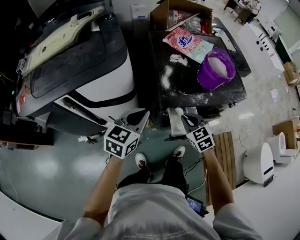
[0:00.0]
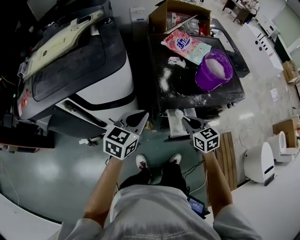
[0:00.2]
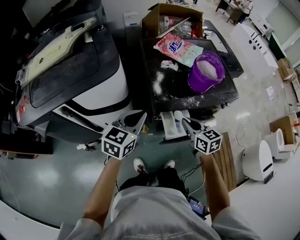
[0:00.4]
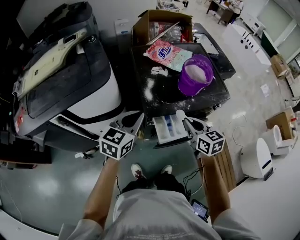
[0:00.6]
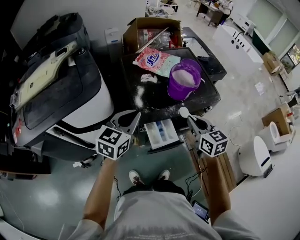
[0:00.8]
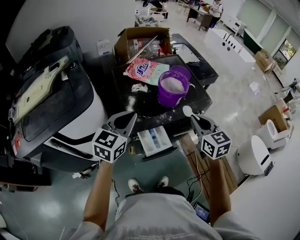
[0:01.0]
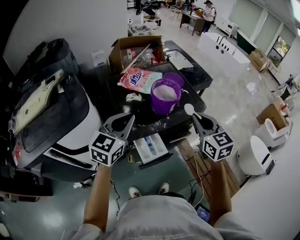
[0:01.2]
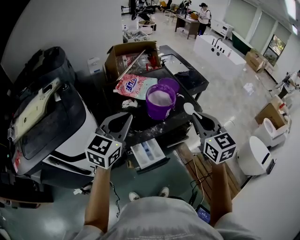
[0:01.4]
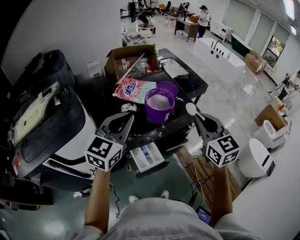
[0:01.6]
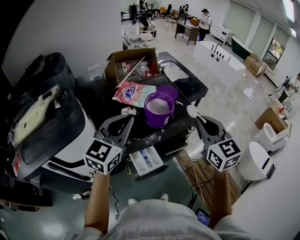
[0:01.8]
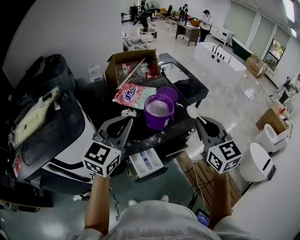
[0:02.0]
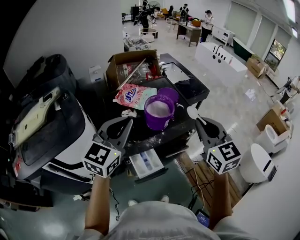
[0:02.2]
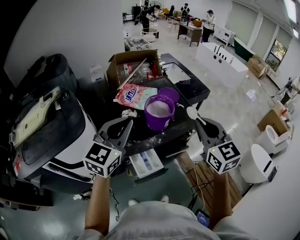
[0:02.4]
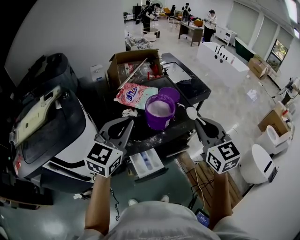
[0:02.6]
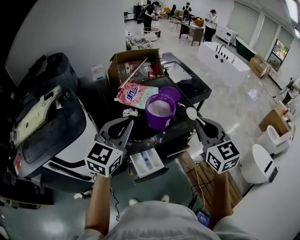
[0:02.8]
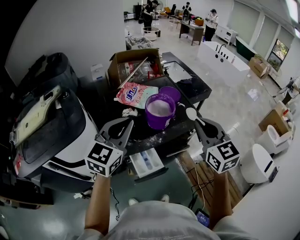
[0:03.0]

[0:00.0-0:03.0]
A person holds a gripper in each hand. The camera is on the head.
0.0 to 1.6 s: Both grippers travel together upward and to the right, approximately 35 cm. The left gripper swivels roughly 30 degrees, while the right gripper changes its angle by roughly 40 degrees.
1.6 to 3.0 s: The grippers stay close to where they were, moving slightly.

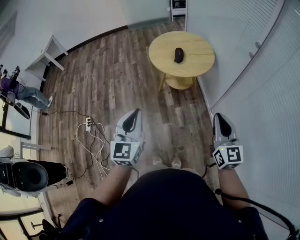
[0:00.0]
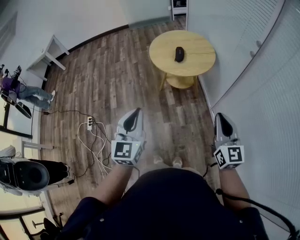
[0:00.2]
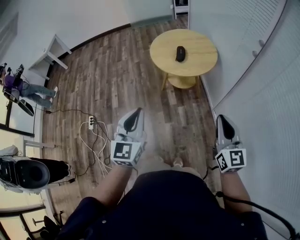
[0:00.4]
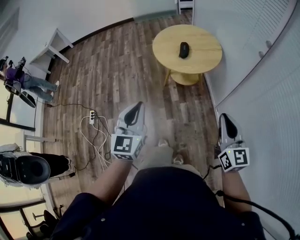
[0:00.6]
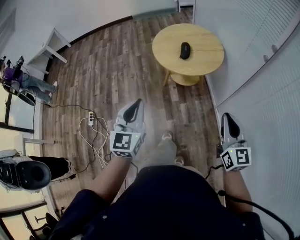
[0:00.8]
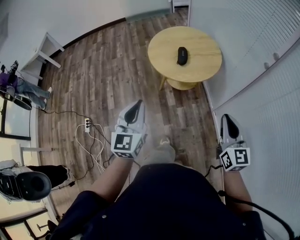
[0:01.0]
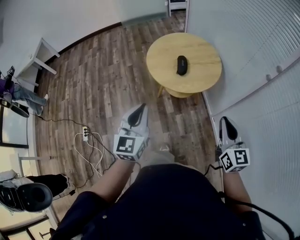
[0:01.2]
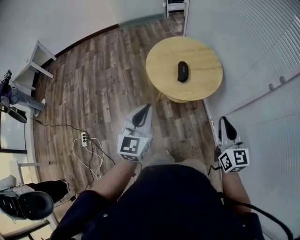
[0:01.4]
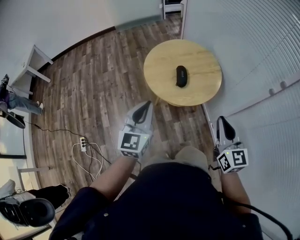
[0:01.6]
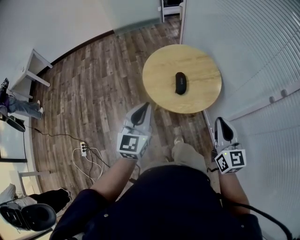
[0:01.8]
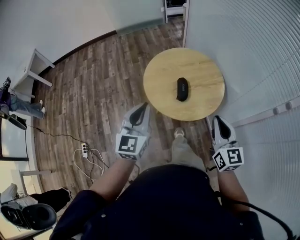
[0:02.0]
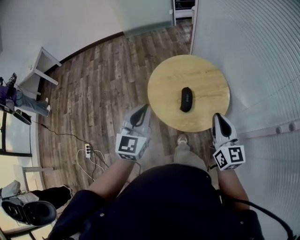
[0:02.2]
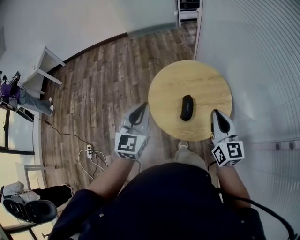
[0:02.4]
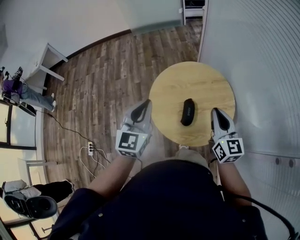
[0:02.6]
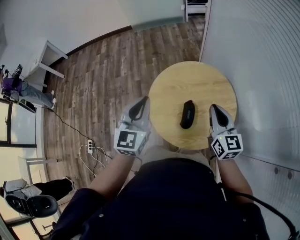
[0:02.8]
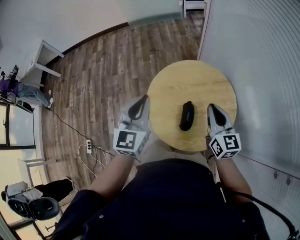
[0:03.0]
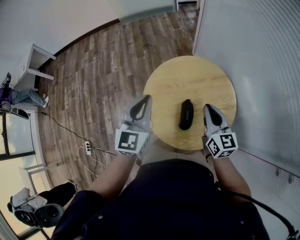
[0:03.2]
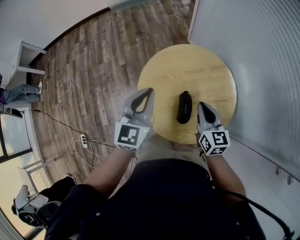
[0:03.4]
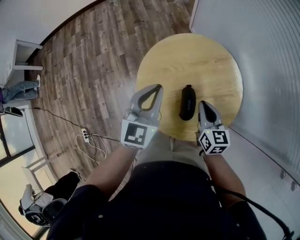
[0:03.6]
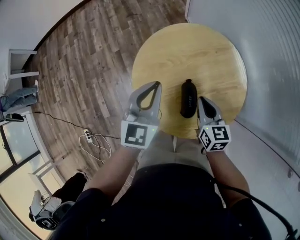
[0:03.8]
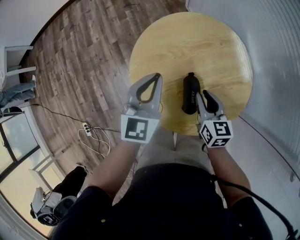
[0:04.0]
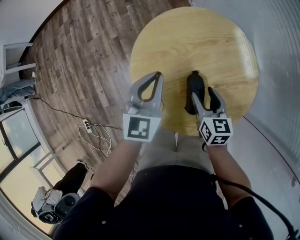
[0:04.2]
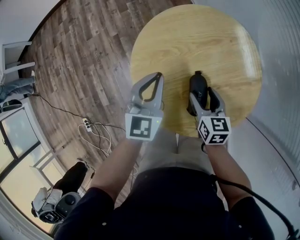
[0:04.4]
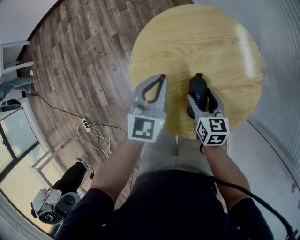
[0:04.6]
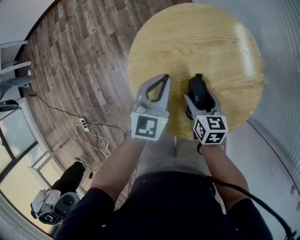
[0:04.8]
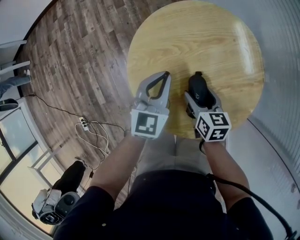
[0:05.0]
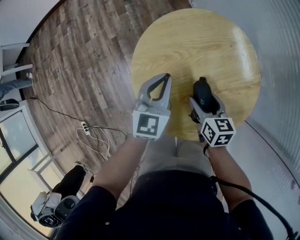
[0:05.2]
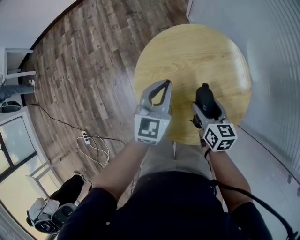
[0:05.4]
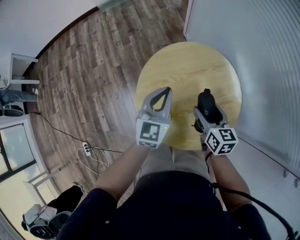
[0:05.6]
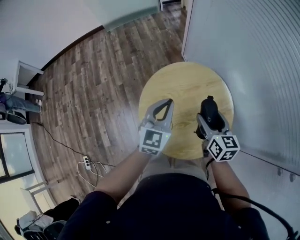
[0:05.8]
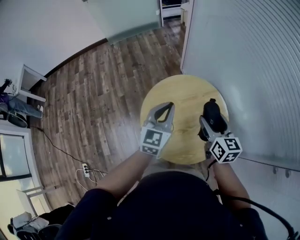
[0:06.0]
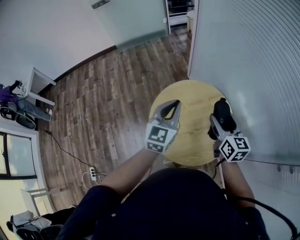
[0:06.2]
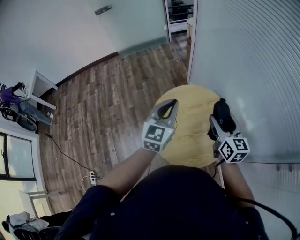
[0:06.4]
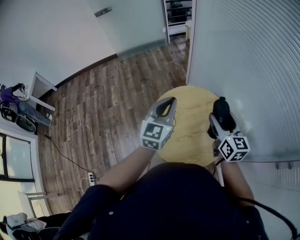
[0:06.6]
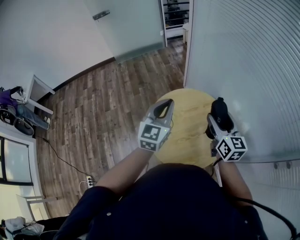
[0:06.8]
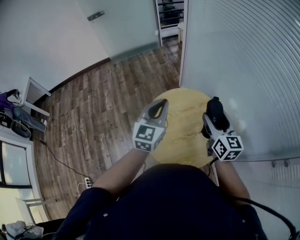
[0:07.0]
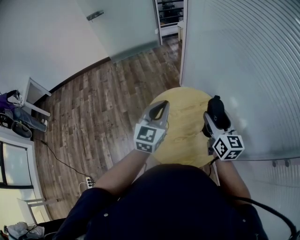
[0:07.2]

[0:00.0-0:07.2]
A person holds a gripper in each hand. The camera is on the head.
0.0 to 1.4 s: The grippers both shift forward by approximately 25 cm.
1.4 to 2.8 s: Both grippers move forward, roughly 35 cm.
2.8 to 4.4 s: The left gripper travels downward and forward by approximately 30 cm, while the right gripper is displaced downward by approximately 30 cm, tilts its fingers some 30 degrees downward, and opens.
4.4 to 5.8 s: The left gripper moves upward, about 15 cm, while the right gripper heads upward, covering approximately 20 cm.
5.8 to 7.2 s: Both grippers move upward, roughly 15 cm.

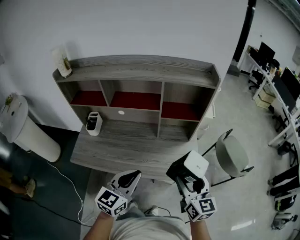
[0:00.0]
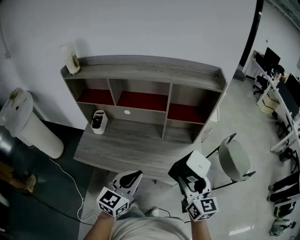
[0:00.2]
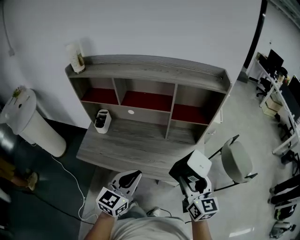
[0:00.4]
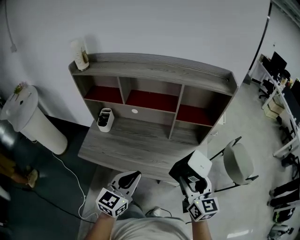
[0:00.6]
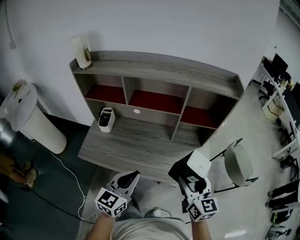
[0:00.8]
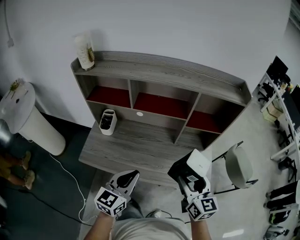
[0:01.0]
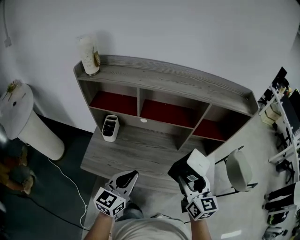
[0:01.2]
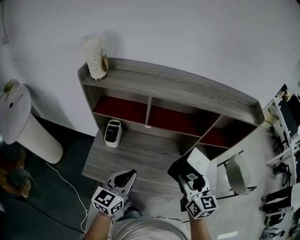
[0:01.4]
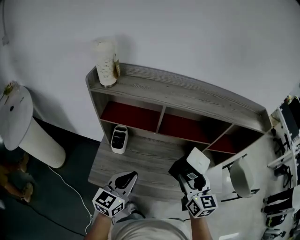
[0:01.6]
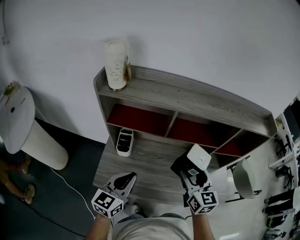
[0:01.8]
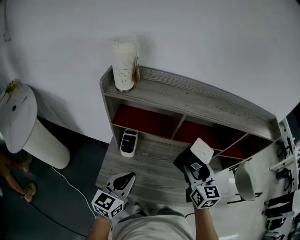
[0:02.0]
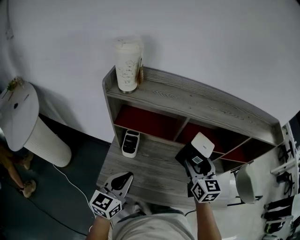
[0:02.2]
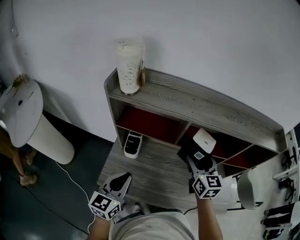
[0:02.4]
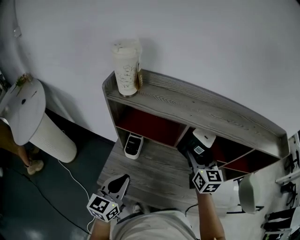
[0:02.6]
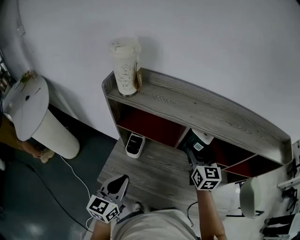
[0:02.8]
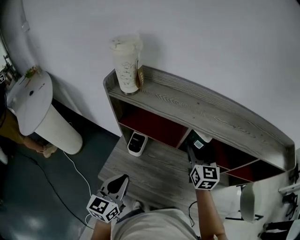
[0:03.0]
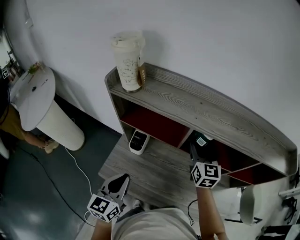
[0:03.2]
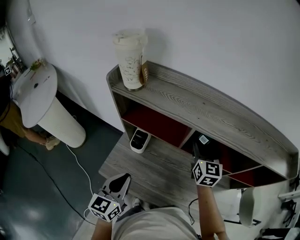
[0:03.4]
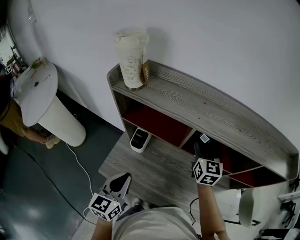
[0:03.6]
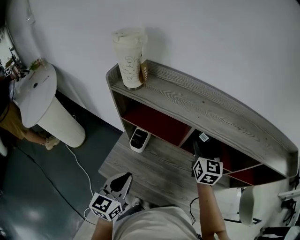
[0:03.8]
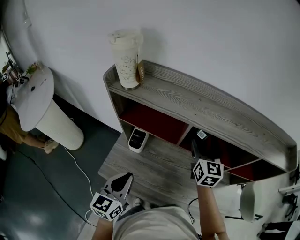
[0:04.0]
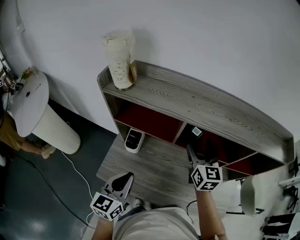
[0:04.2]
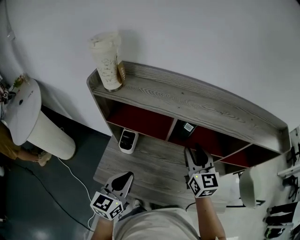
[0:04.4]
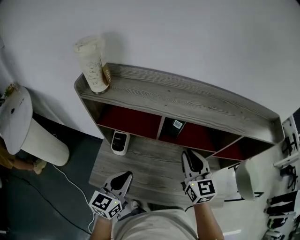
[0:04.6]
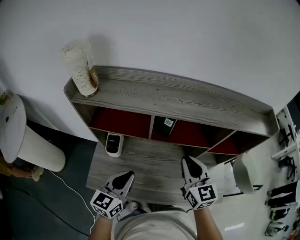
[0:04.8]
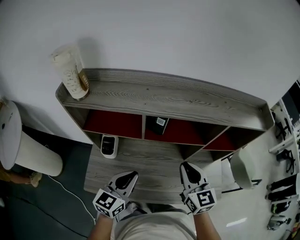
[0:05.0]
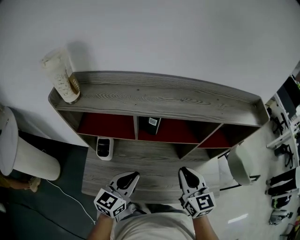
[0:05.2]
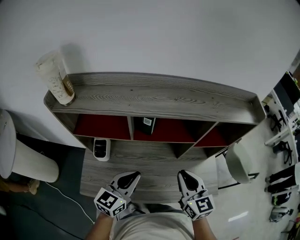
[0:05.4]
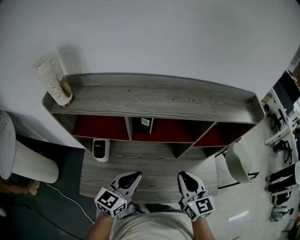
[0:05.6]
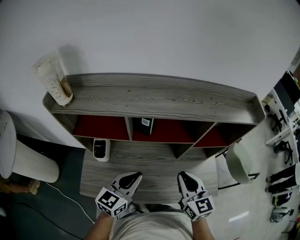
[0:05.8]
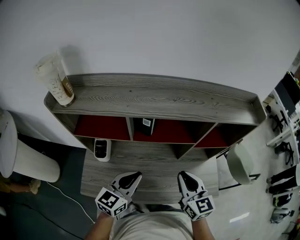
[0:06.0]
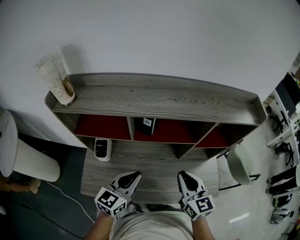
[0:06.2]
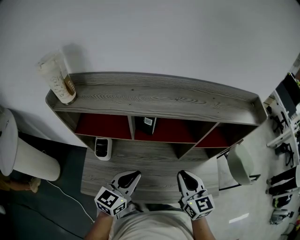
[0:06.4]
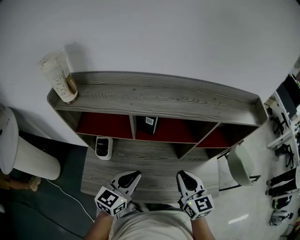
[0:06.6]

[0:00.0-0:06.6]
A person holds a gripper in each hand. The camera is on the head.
0.0 to 1.6 s: The left gripper goes roughly 30 cm to the left; the right gripper moves to the left and forward, roughly 30 cm.
1.6 to 3.2 s: The left gripper goes some 10 cm to the left, and swivels roughly 20 degrees. The right gripper moves forward, roughly 25 cm.
3.2 to 5.0 s: The left gripper travels to the right by about 15 cm, and turns by approximately 30 degrees, while the right gripper heads backward and to the right, covering about 20 cm, and closes up.
5.0 to 6.6 s: The right gripper shifts by roughly 5 cm.

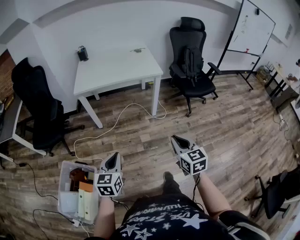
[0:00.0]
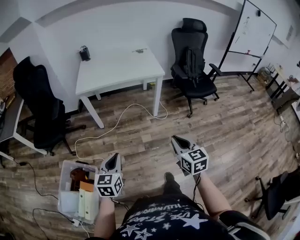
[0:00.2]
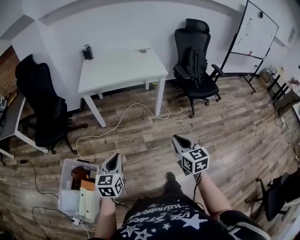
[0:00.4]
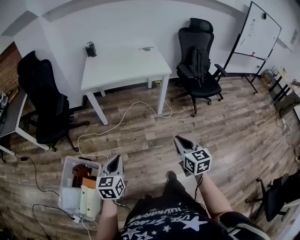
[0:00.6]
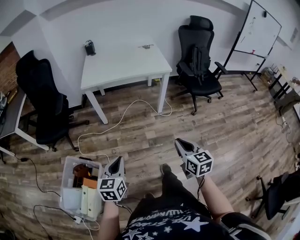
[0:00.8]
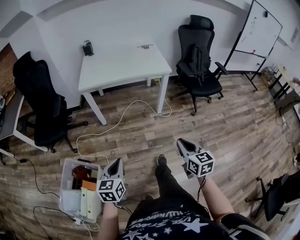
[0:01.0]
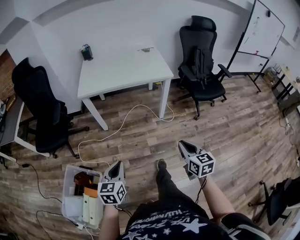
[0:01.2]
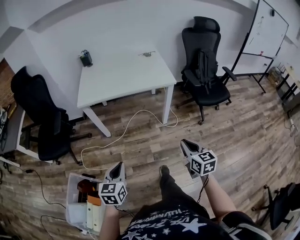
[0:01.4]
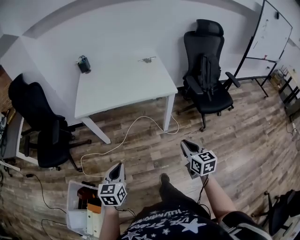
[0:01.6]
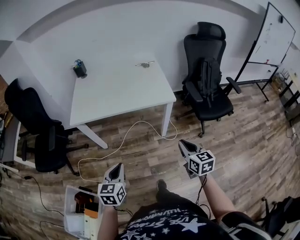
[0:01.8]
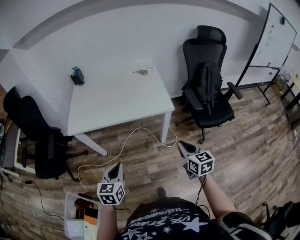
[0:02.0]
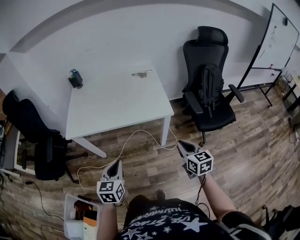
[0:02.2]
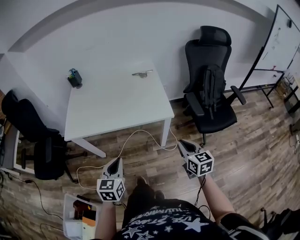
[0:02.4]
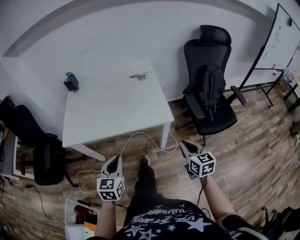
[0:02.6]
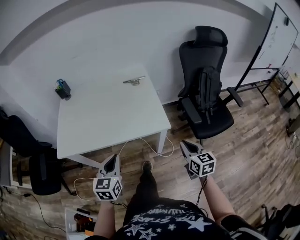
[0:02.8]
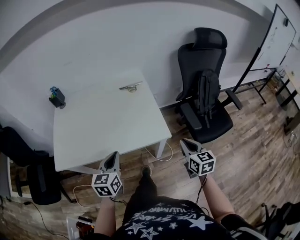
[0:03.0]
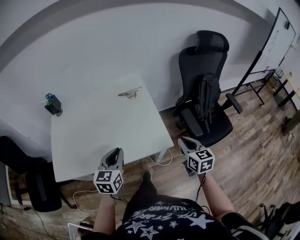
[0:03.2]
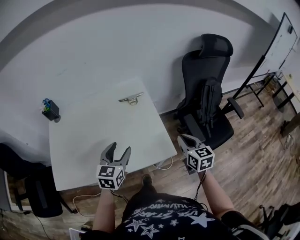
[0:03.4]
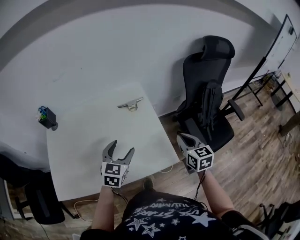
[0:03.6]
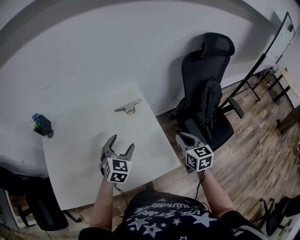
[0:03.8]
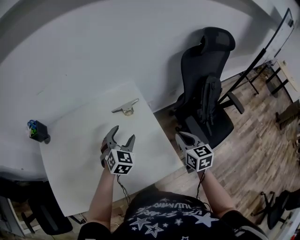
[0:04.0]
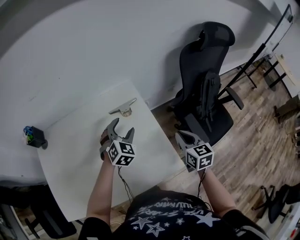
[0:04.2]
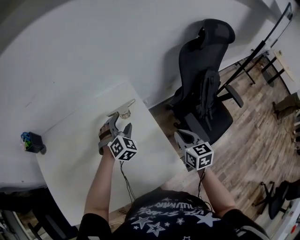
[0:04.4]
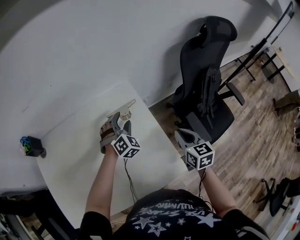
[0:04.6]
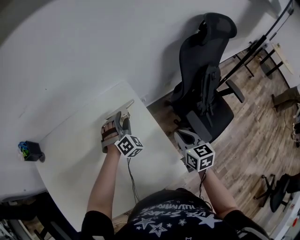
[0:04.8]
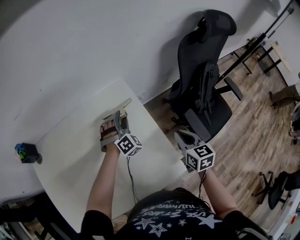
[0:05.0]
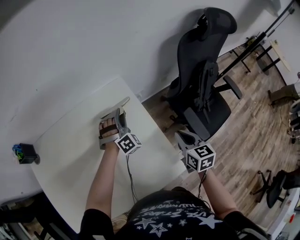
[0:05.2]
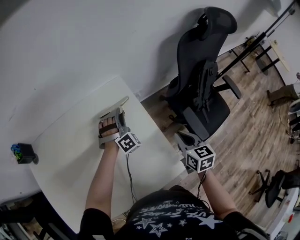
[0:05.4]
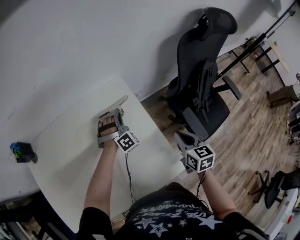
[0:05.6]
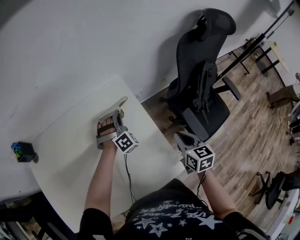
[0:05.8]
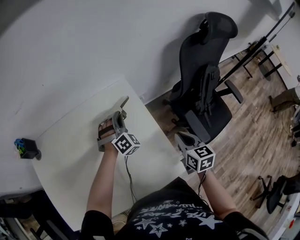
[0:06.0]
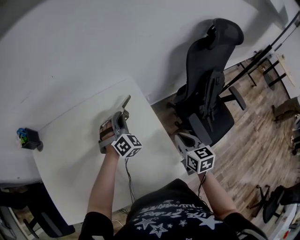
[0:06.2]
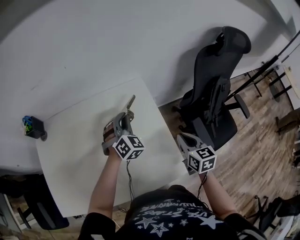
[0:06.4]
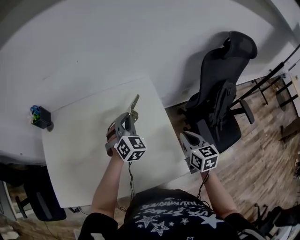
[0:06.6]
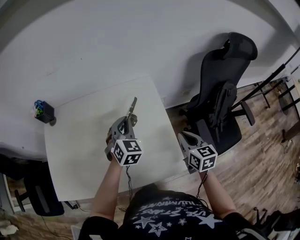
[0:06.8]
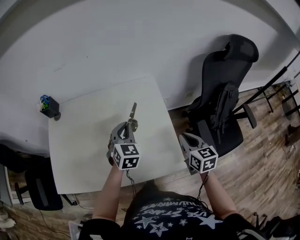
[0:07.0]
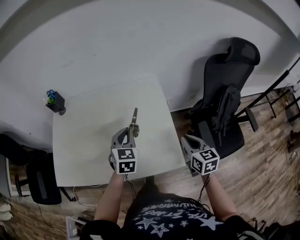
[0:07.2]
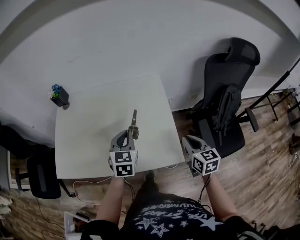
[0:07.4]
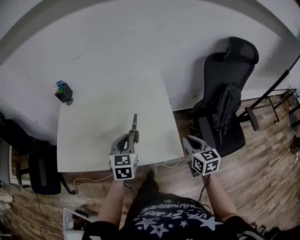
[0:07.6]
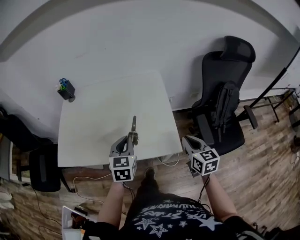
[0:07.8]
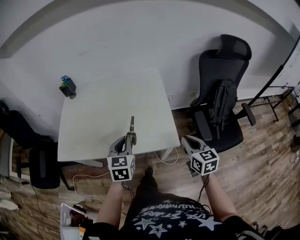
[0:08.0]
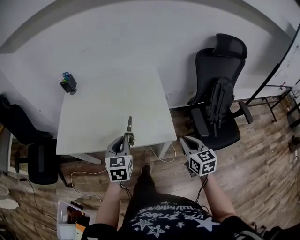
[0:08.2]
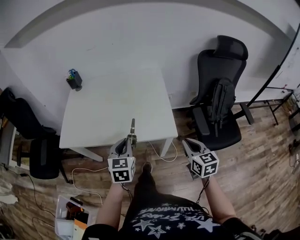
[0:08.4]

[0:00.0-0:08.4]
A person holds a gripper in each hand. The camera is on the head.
0.0 to 1.4 s: Both grippers move forward, about 15 cm.
1.4 to 2.8 s: The pair of grippers is taken forward, about 50 cm.
2.8 to 4.2 s: The two grippers travel together, forward, approximately 50 cm. The left gripper twists approximately 40 degrees clockwise, seen from behind, and opens up.
4.2 to 5.6 s: The left gripper is displaced forward and downward by some 15 cm, changes its angle by about 40 degrees, and closes up, while the right gripper changes place by about 5 cm.
5.6 to 7.0 s: The right gripper travels backward and upward by some 10 cm. Meanwhile the left gripper heads backward, upward and to the left, covering some 25 cm, and twists roughly 60 degrees counterclockwise, seen from behind.
7.0 to 8.4 s: Both grippers travel together backward, some 35 cm. The left gripper changes its angle by approximately 20 degrees.
